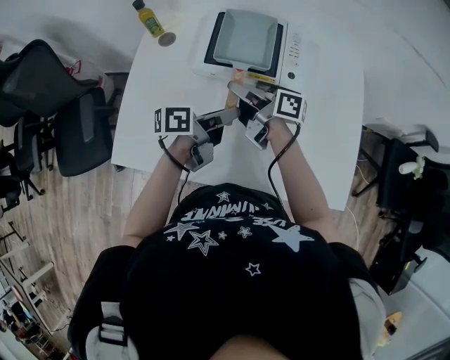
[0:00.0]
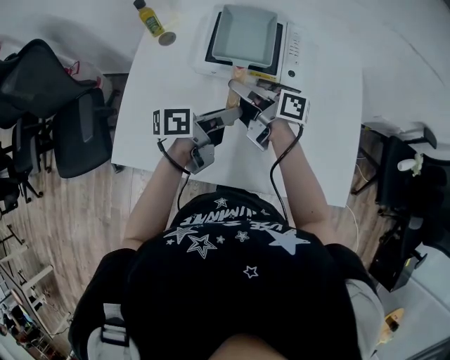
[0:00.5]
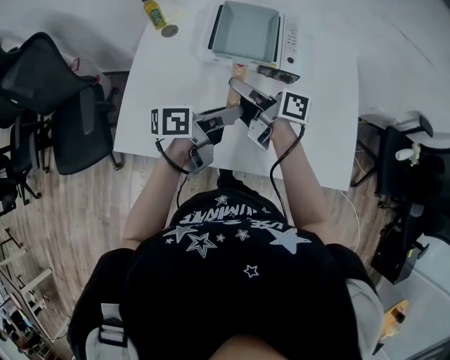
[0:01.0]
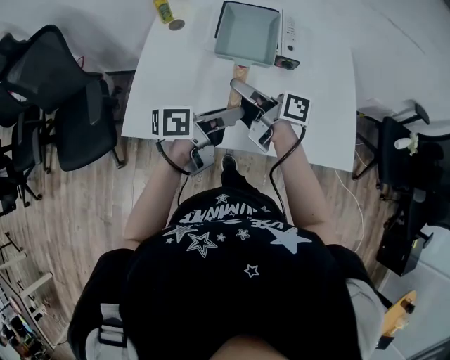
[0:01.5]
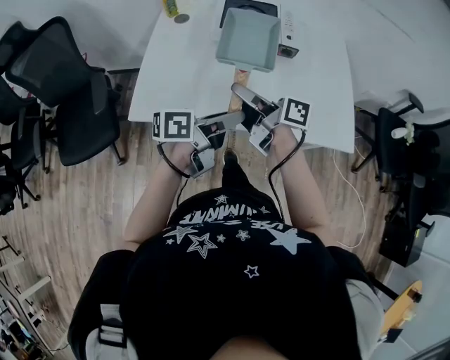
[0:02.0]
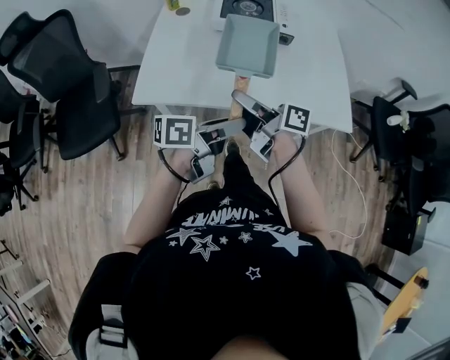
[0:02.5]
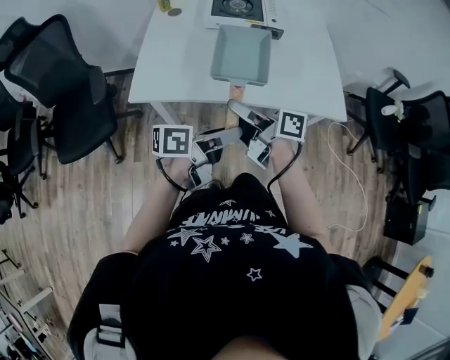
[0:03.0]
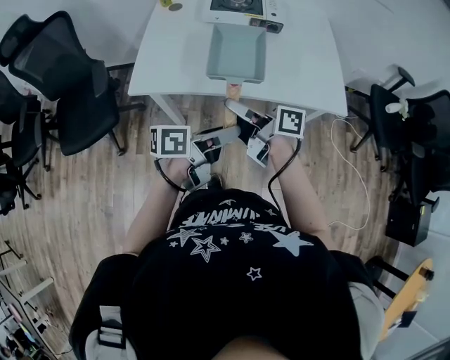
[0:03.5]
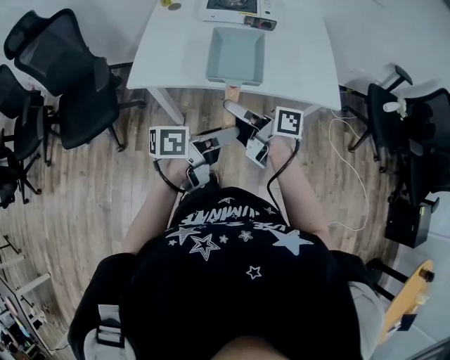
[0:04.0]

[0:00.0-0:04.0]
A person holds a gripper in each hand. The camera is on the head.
0:00.0 to 0:02.0: Both grippers travel together backward, about 25 cm.
0:02.0 to 0:04.0: The grippers both shift backward by about 20 cm.

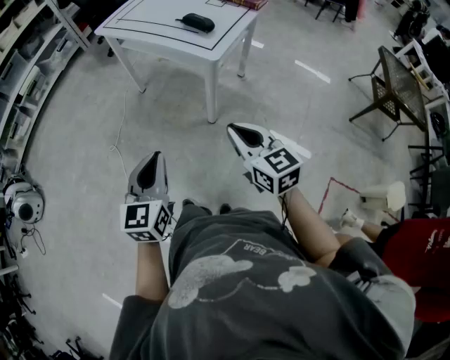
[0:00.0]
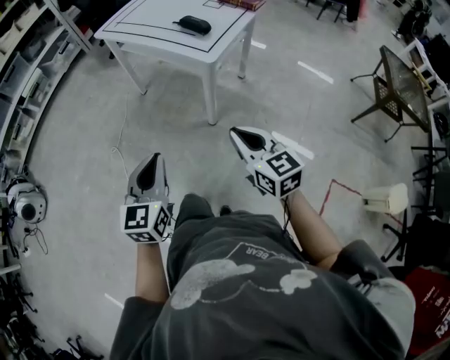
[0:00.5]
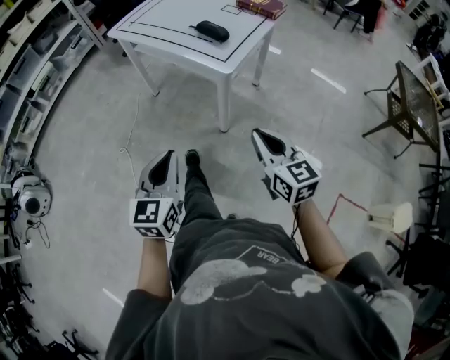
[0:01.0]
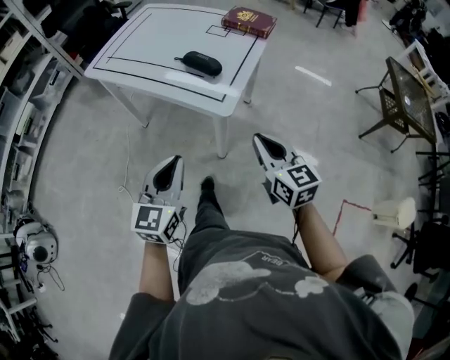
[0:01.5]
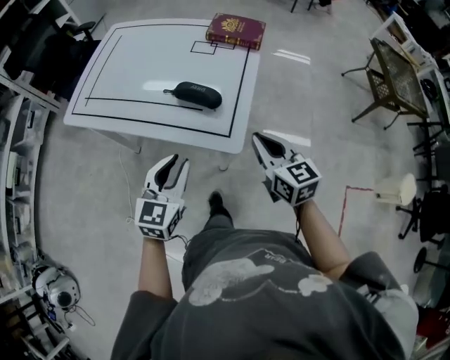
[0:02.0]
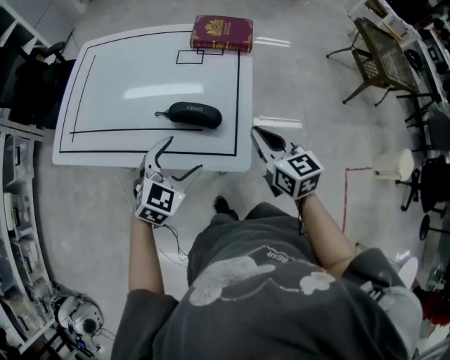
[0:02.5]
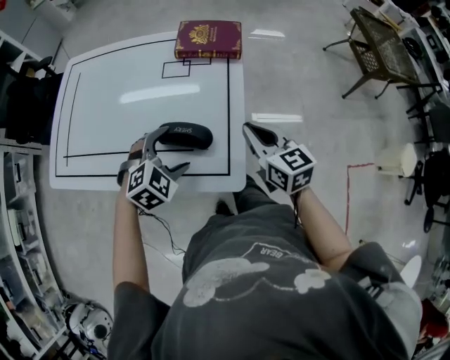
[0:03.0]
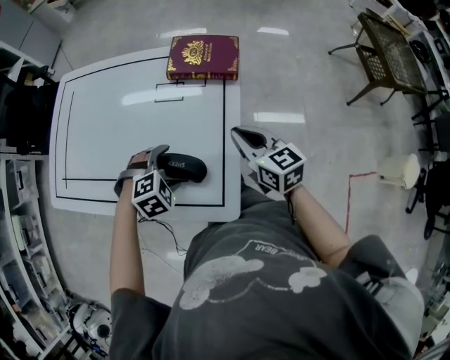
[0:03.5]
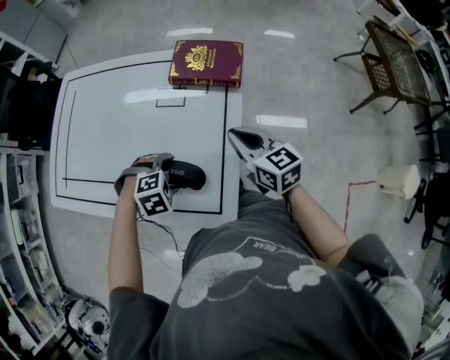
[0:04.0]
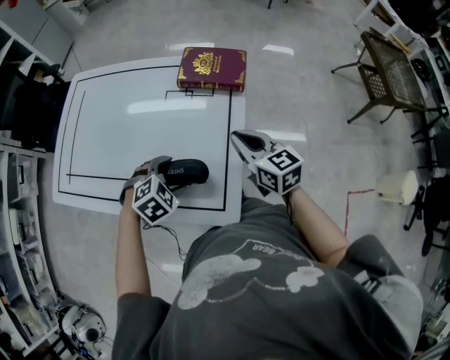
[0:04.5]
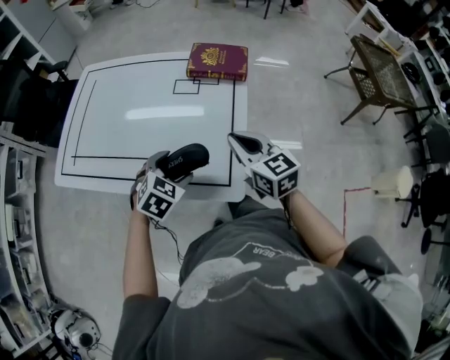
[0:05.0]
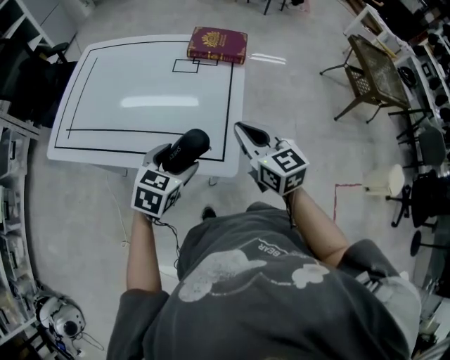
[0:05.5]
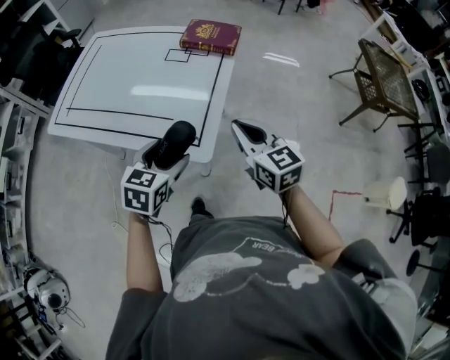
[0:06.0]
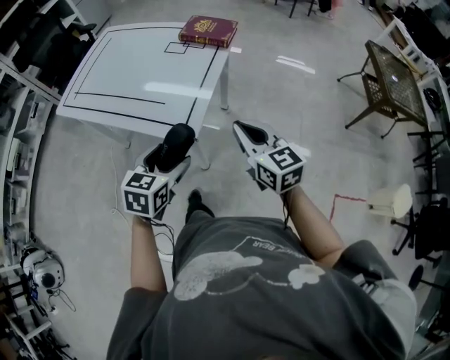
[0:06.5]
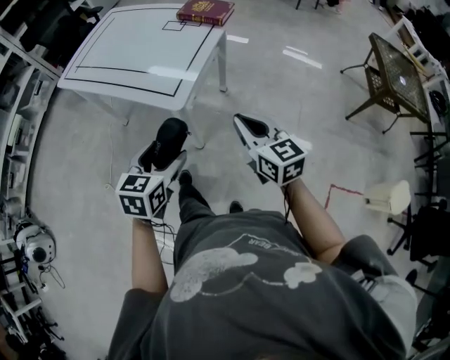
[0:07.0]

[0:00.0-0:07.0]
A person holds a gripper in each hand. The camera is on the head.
0:00.0 to 0:02.0: The right gripper shifts by about 35 cm, and changes its angle by roughly 20 degrees. The left gripper ends up approximately 40 cm from where it was, and rotates about 30 degrees.
0:02.0 to 0:03.5: The right gripper moves forward, approximately 25 cm; the left gripper goes about 25 cm forward and downward, tips its fingers downward by roughly 50 degrees, and opens.
0:03.5 to 0:05.0: The left gripper shifts by about 10 cm, and turns by some 40 degrees. The right gripper shifts by roughly 10 cm.
0:05.0 to 0:07.0: The grippers both shift backward and to the right by roughly 35 cm. The left gripper rotates roughly 40 degrees.

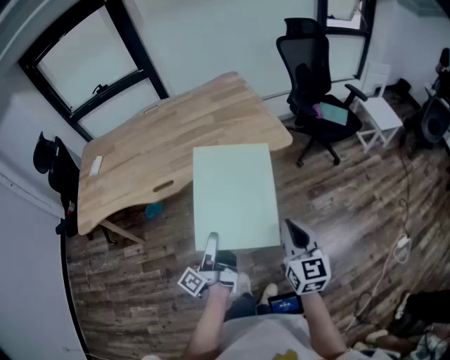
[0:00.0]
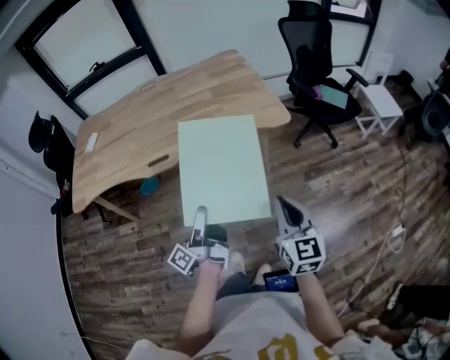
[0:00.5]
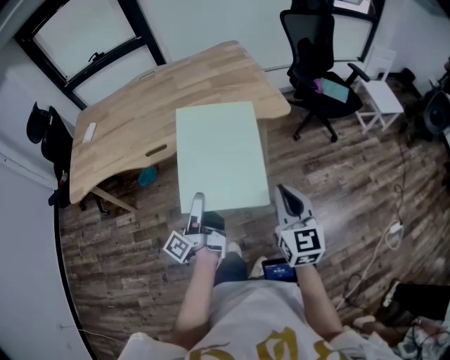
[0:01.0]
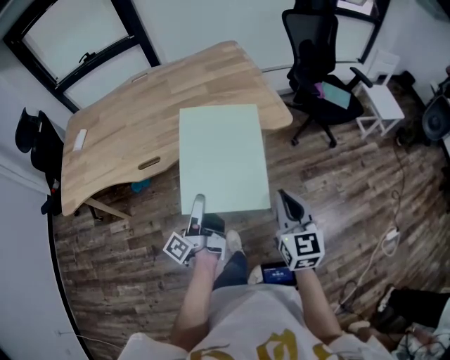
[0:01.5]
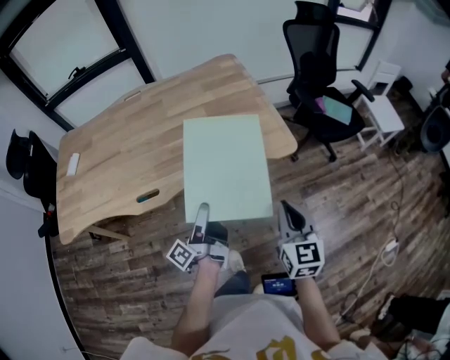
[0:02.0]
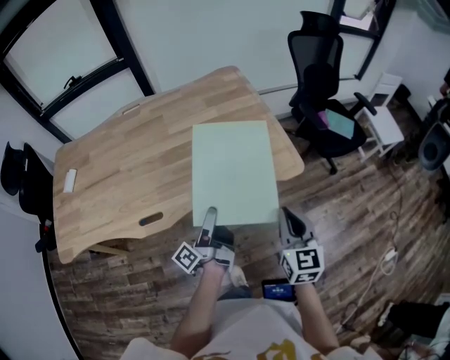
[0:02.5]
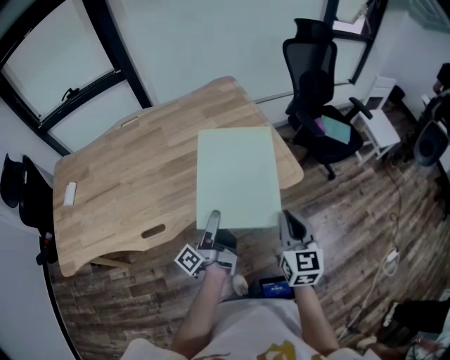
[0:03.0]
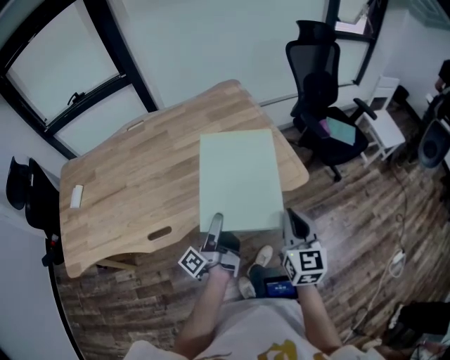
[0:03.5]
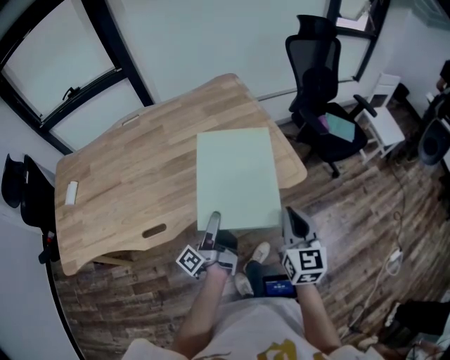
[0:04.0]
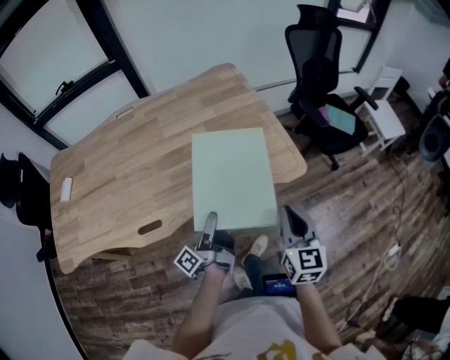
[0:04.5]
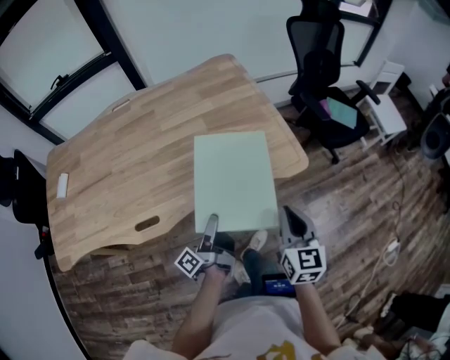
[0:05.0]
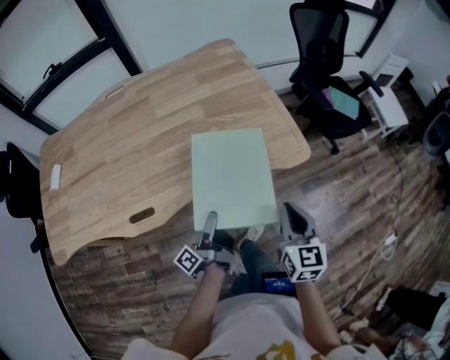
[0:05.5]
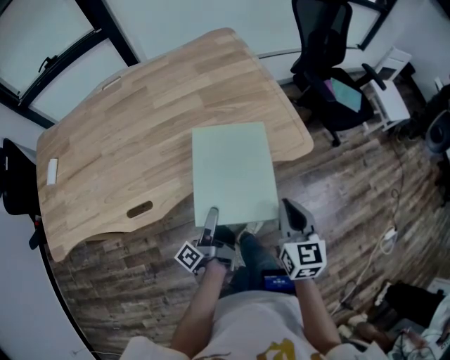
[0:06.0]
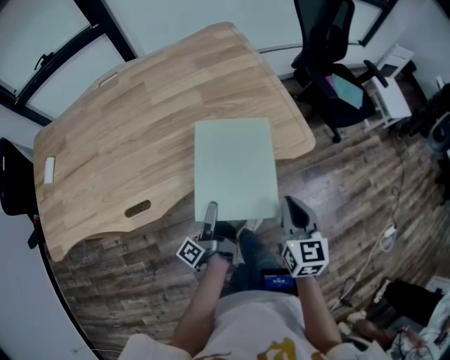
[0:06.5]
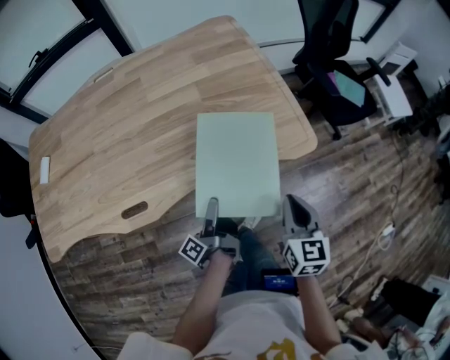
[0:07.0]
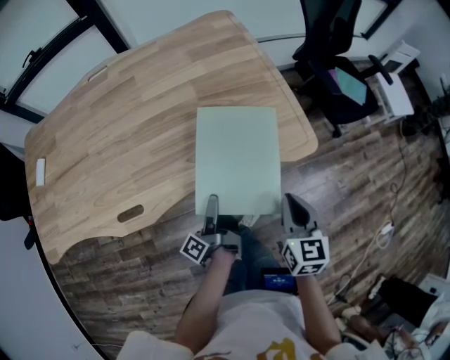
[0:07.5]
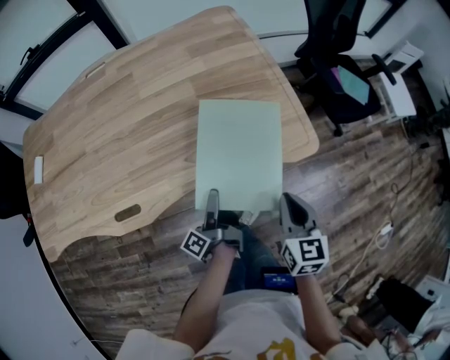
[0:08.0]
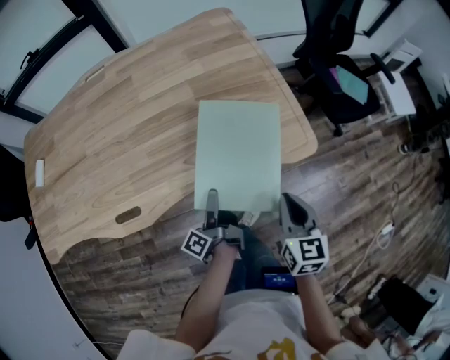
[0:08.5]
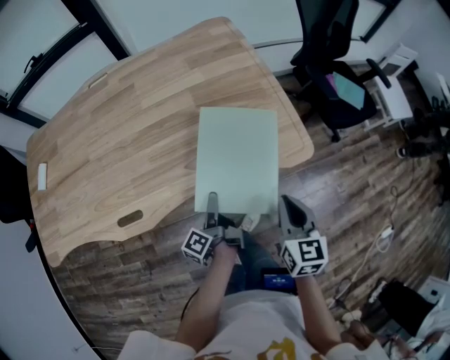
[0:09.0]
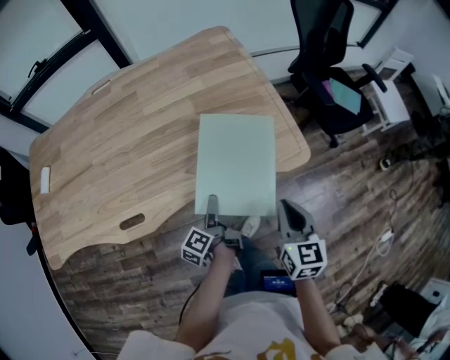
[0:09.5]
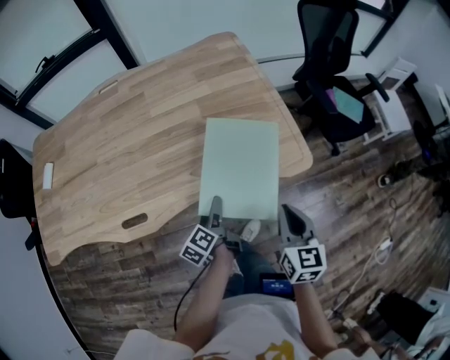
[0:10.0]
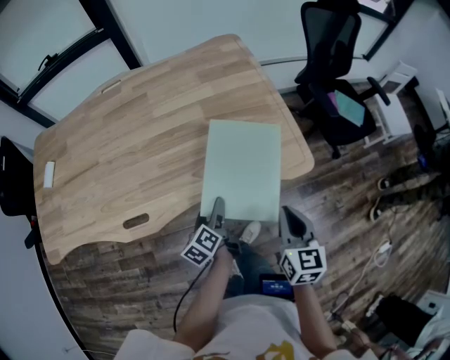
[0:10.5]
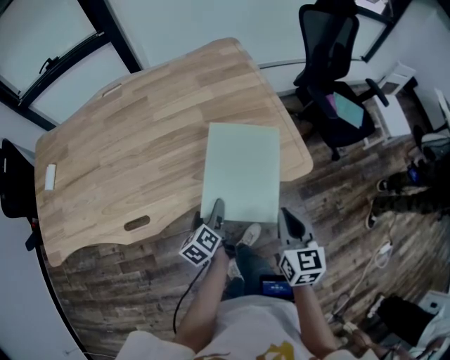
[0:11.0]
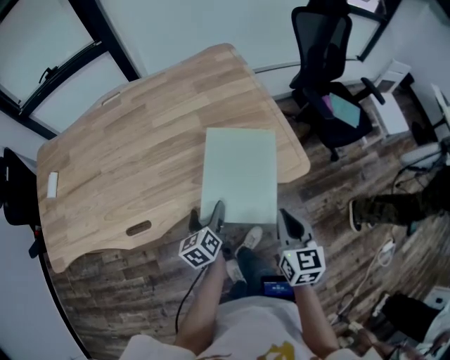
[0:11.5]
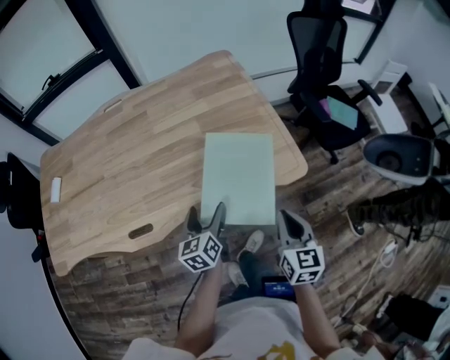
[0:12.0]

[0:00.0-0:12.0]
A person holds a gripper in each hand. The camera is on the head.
0:00.0 to 0:02.0: The right gripper ends up about 20 cm from where it was.
0:02.0 to 0:04.0: The right gripper moves approximately 10 cm.
0:04.0 to 0:06.0: The right gripper is displaced downward by about 10 cm.
0:06.0 to 0:08.0: The right gripper ends up some 5 cm from where it was.

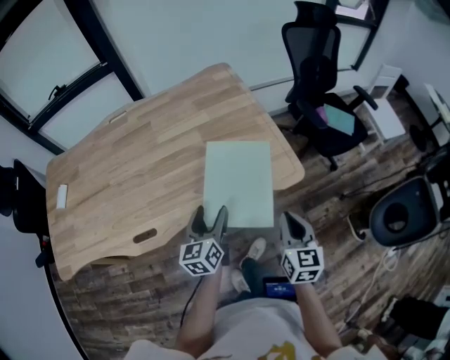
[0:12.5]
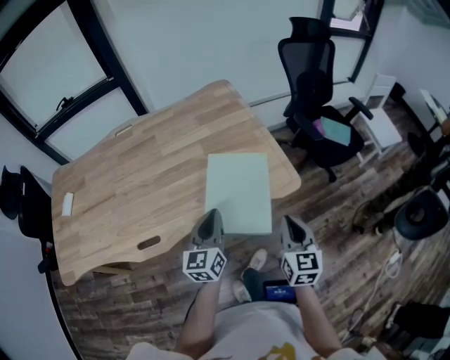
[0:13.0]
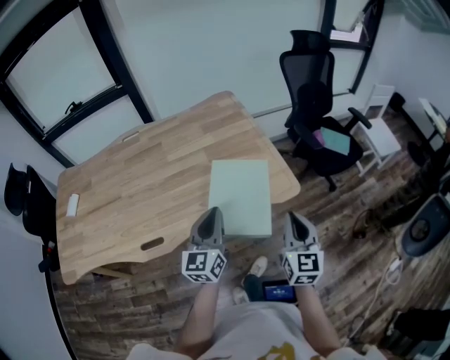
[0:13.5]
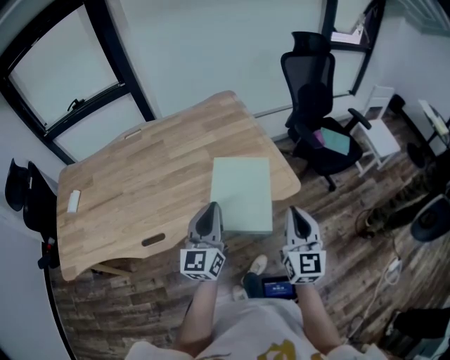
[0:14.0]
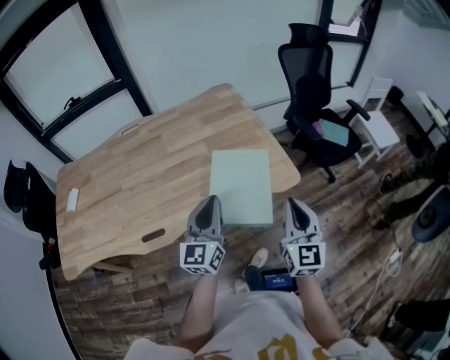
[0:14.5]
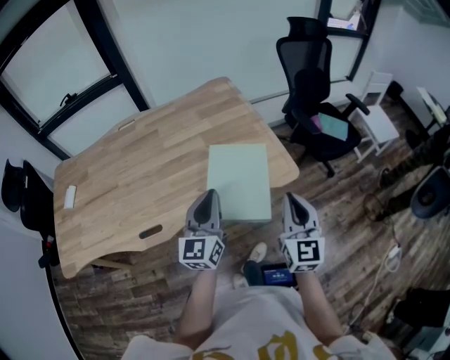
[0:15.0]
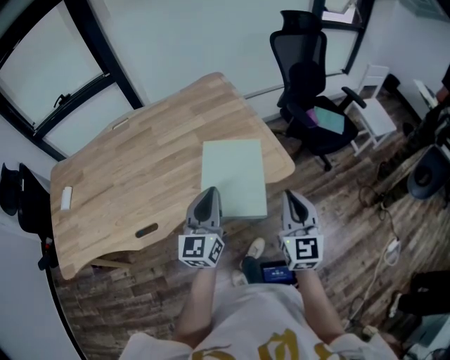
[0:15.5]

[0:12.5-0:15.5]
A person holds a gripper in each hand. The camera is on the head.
0:12.5 to 0:14.0: The right gripper goes roughly 10 cm upward, and swivels some 20 degrees.
